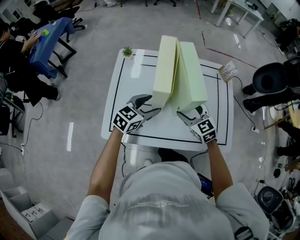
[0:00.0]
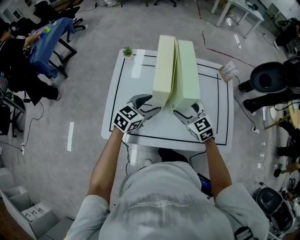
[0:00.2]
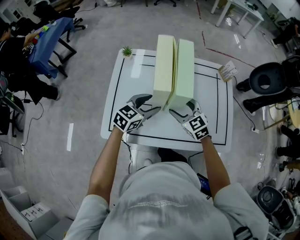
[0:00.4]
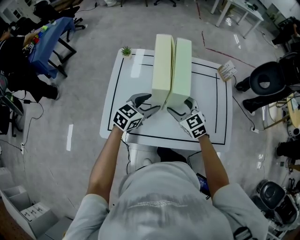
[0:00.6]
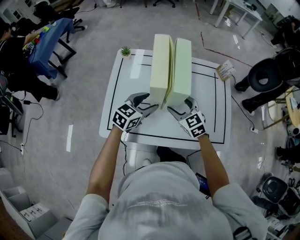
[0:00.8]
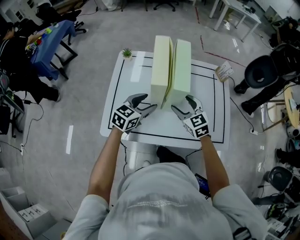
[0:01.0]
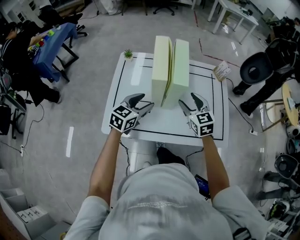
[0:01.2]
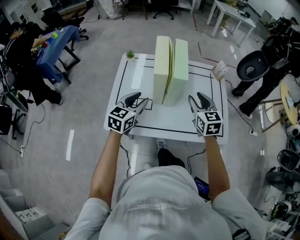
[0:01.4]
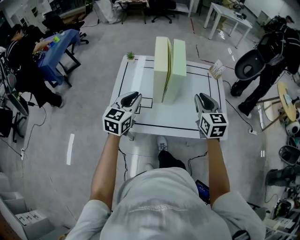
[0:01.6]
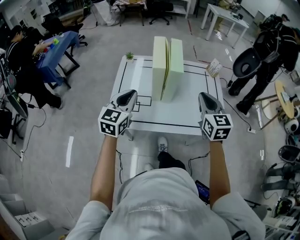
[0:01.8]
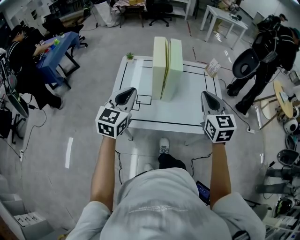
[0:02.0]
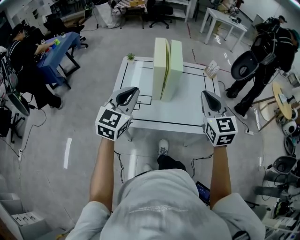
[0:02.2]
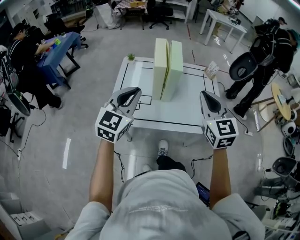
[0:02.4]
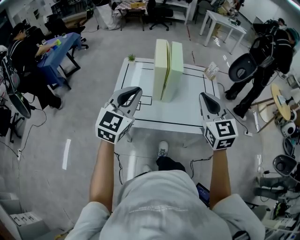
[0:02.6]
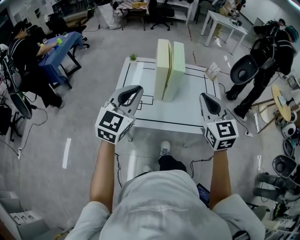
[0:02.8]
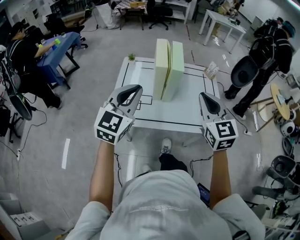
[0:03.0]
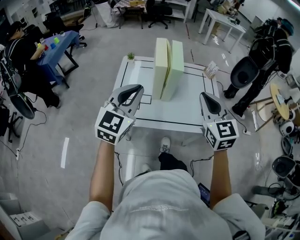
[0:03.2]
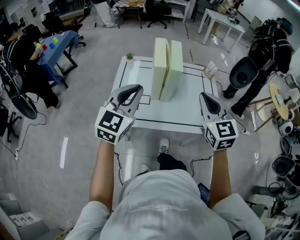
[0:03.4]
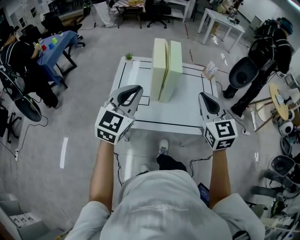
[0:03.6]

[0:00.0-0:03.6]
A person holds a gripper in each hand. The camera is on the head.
0:00.0 to 0:01.8: The left gripper goes some 20 cm upward, backward and to the left, turns by approximately 30 degrees, and closes its fingers. The right gripper shifts some 25 cm upward, backward and to the right, rotates some 30 degrees, and closes up.
0:01.8 to 0:03.6: The grippers both shift upward and backward by about 10 cm.

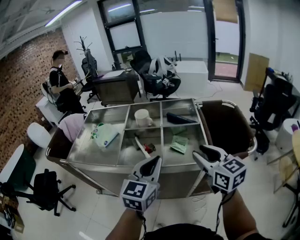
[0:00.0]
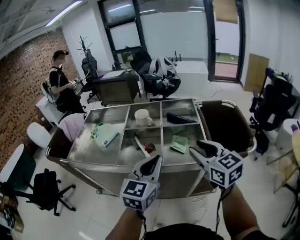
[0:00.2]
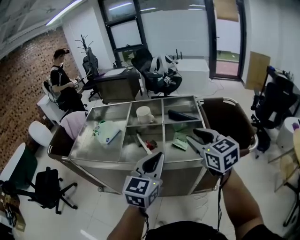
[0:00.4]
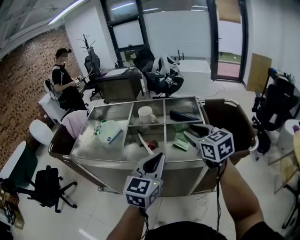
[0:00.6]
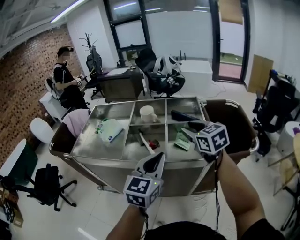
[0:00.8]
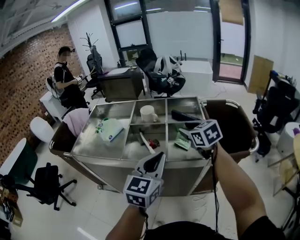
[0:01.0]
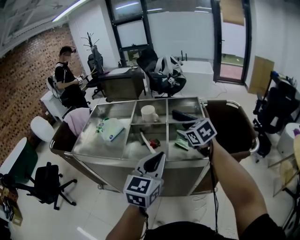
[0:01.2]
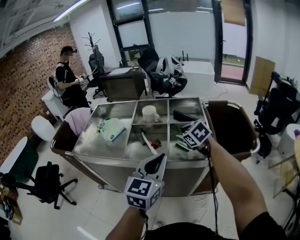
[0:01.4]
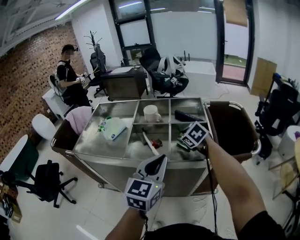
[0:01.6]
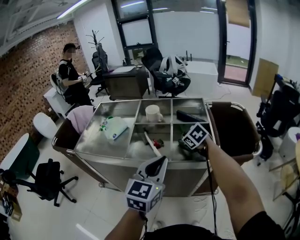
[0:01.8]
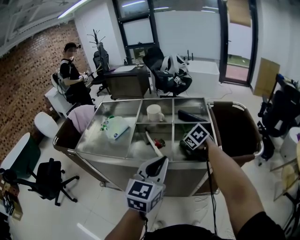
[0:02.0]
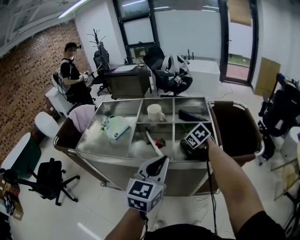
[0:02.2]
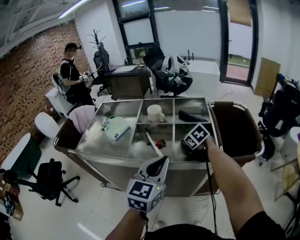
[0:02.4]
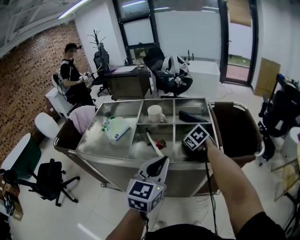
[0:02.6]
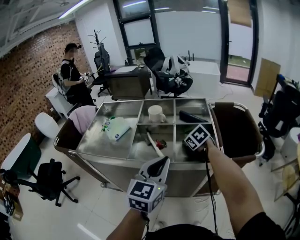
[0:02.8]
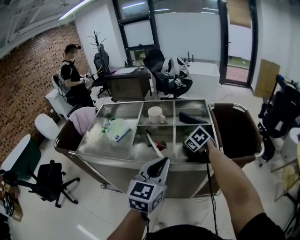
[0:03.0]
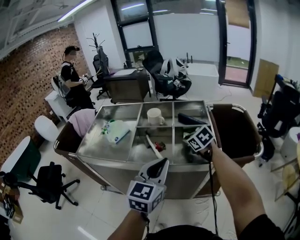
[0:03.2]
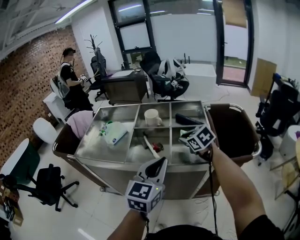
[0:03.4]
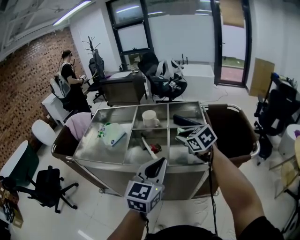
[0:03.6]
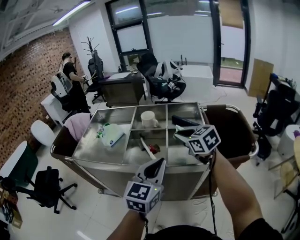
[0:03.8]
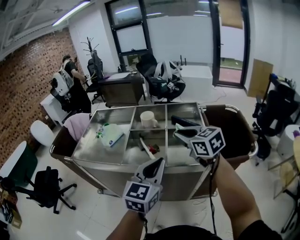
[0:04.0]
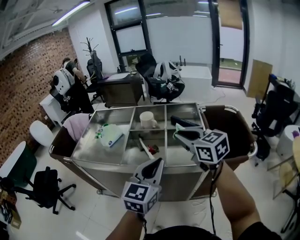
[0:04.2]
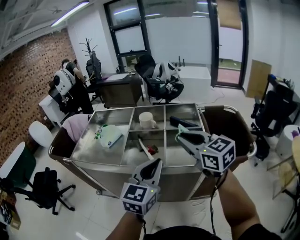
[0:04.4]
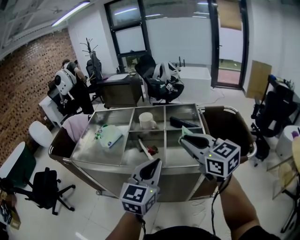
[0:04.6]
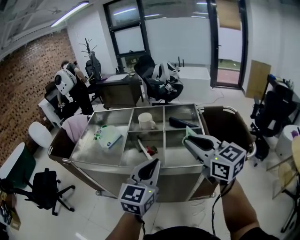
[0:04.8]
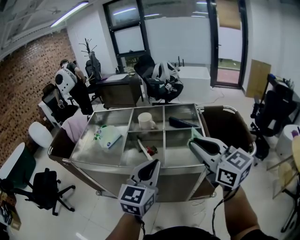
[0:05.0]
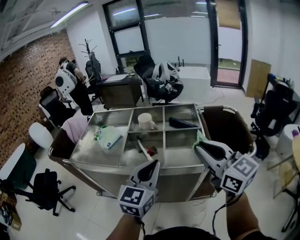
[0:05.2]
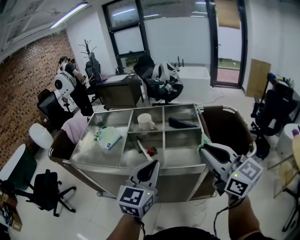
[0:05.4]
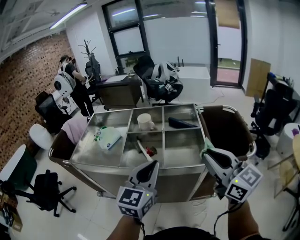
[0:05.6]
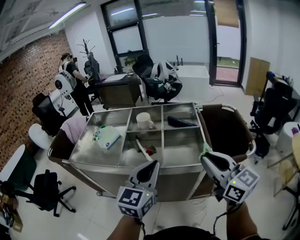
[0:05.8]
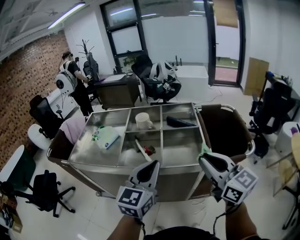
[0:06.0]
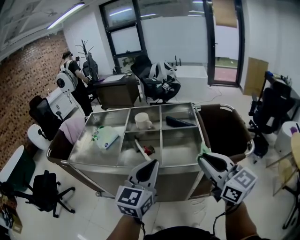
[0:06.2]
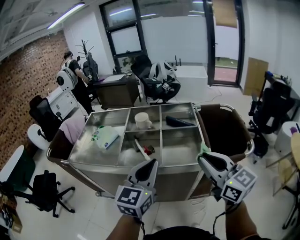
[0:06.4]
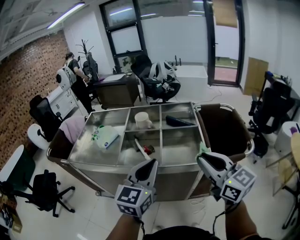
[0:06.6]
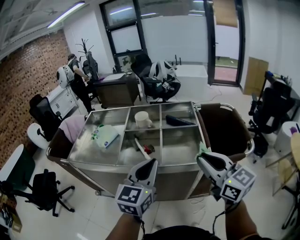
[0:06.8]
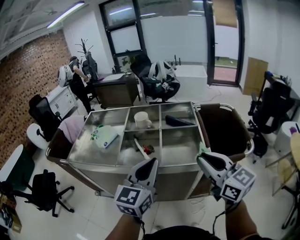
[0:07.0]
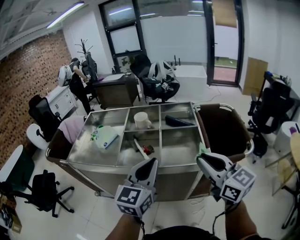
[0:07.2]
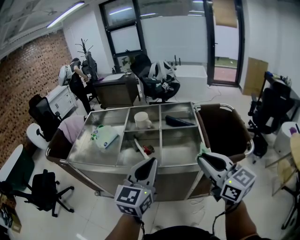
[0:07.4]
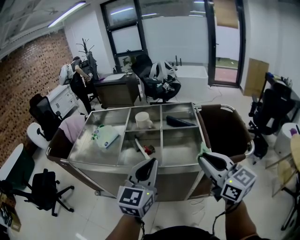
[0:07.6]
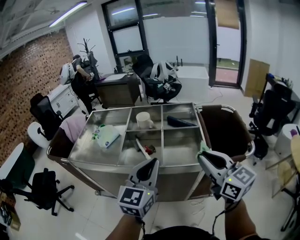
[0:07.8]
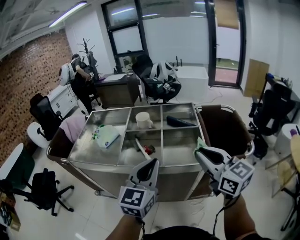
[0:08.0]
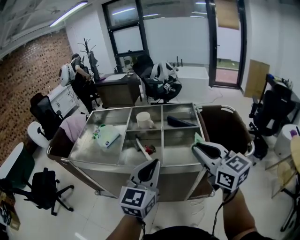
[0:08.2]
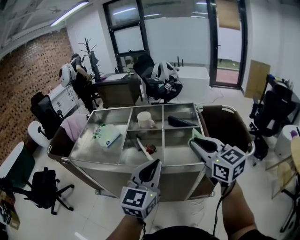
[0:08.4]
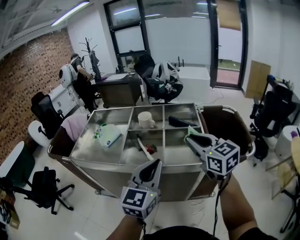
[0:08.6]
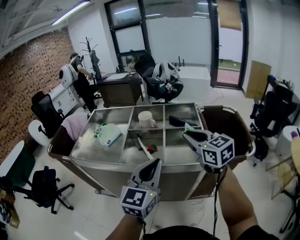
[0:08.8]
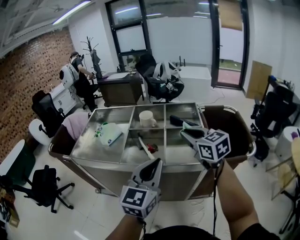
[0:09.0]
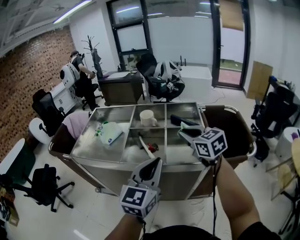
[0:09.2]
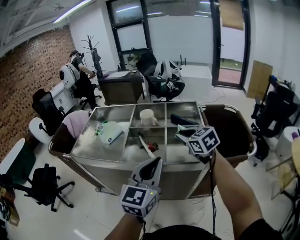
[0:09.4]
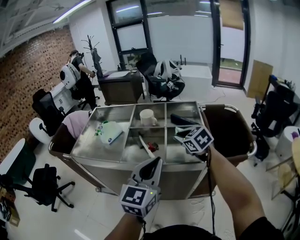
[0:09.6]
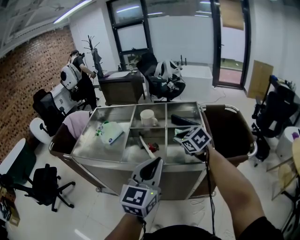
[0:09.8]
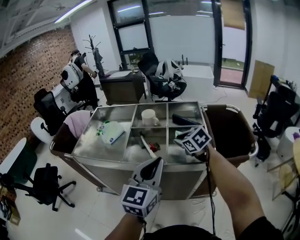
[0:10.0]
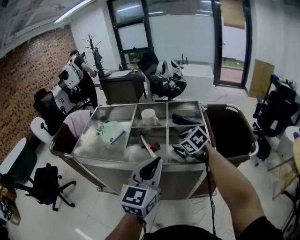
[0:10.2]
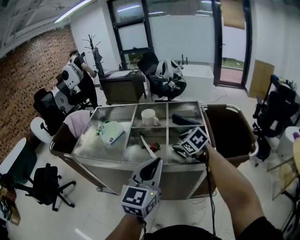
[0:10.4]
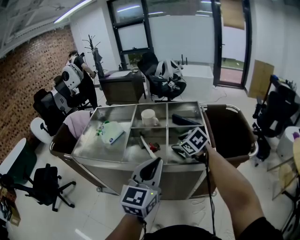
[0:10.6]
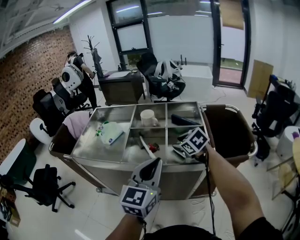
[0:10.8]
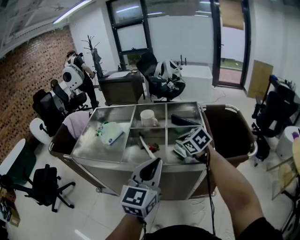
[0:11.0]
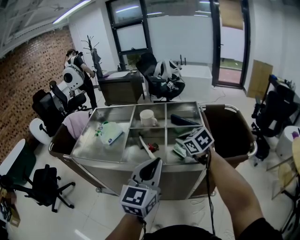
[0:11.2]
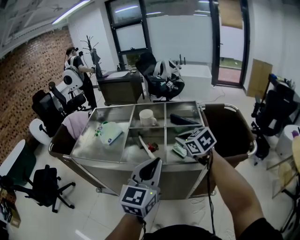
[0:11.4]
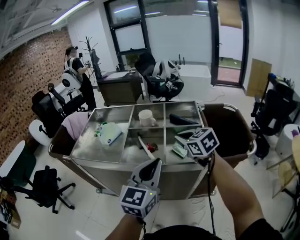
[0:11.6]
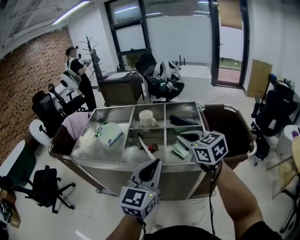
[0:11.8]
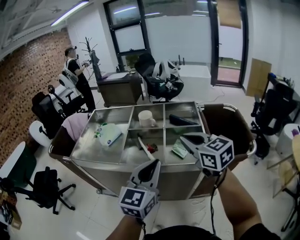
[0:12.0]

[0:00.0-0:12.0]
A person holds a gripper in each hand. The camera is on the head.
0:00.0 to 0:01.6: The right gripper moves forward, downward and to the left, roughly 20 cm, and tips its fingers downward by roughly 40 degrees.
0:01.6 to 0:03.0: The right gripper closes its fingers.
0:03.0 to 0:04.4: The right gripper shifts about 25 cm upward and backward, and tilts its fingers approximately 40 degrees upward.
0:04.4 to 0:06.0: The right gripper moves backward and to the right, about 15 cm.
0:06.0 to 0:07.6: Both grippers stay put.
0:07.6 to 0:09.0: The right gripper goes some 15 cm forward.
0:09.0 to 0:10.4: The right gripper goes approximately 15 cm downward, rotates roughly 30 degrees, and opens.
0:10.4 to 0:12.0: The right gripper moves upward and backward, some 15 cm, tips its fingers upward by about 30 degrees, and closes its fingers.

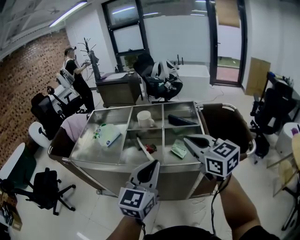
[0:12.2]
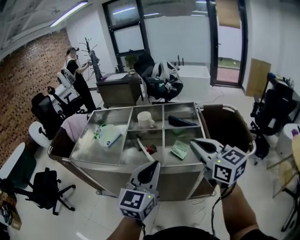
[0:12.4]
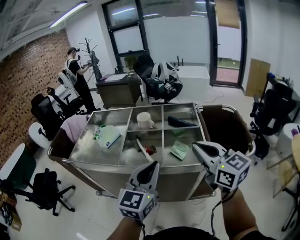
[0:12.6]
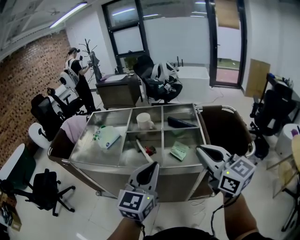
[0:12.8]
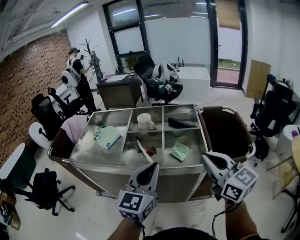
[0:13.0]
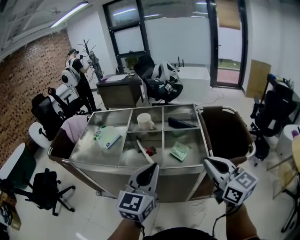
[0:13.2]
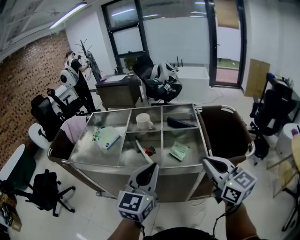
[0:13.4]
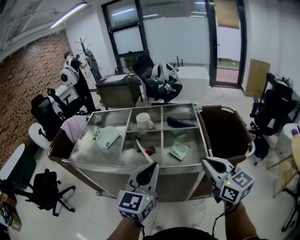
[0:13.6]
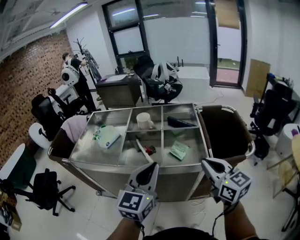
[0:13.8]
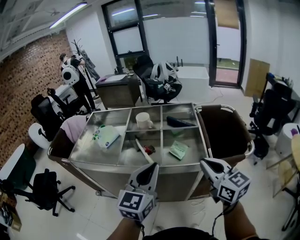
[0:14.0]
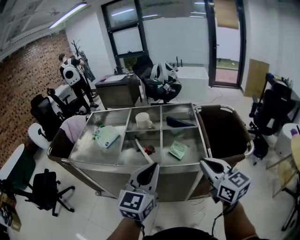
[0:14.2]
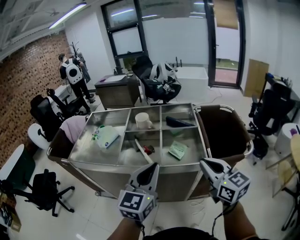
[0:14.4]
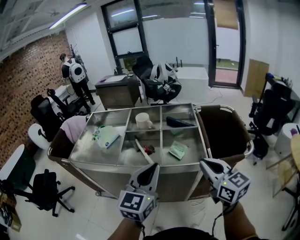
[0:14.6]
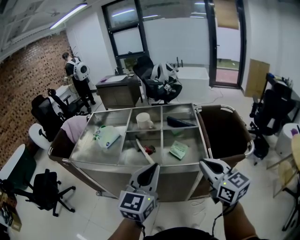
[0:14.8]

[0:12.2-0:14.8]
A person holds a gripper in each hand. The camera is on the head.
0:12.2 to 0:13.4: The right gripper goes some 10 cm backward and to the right.
0:13.4 to 0:14.8: The grippers move only a little.

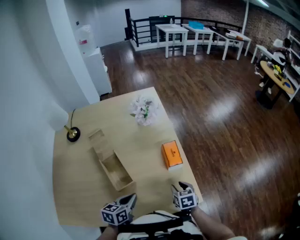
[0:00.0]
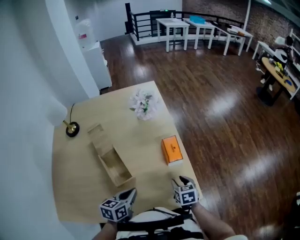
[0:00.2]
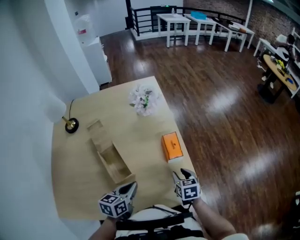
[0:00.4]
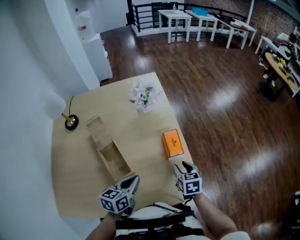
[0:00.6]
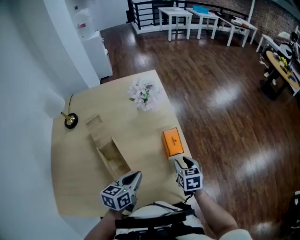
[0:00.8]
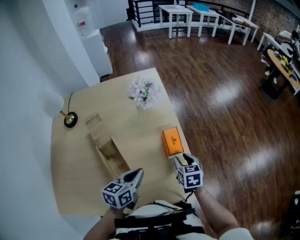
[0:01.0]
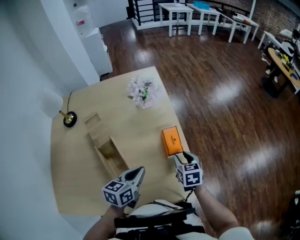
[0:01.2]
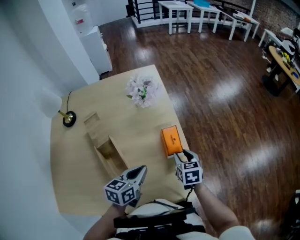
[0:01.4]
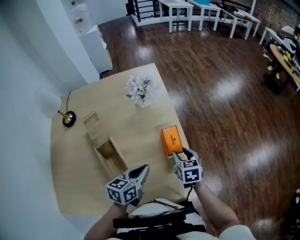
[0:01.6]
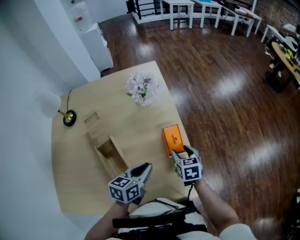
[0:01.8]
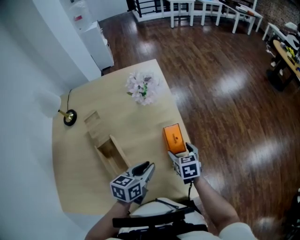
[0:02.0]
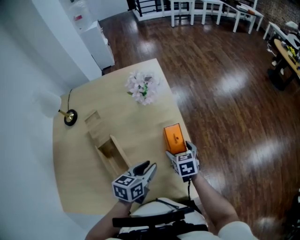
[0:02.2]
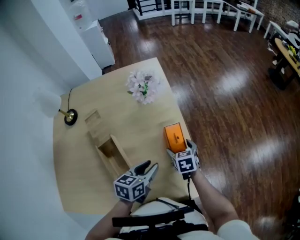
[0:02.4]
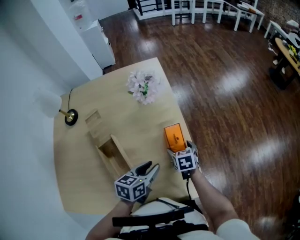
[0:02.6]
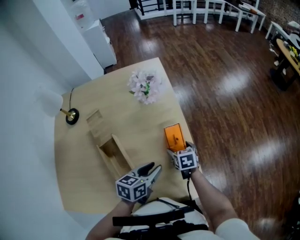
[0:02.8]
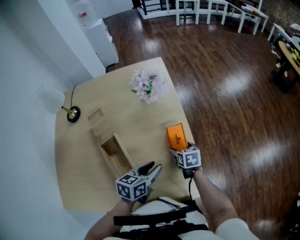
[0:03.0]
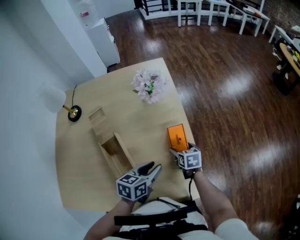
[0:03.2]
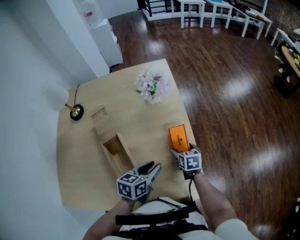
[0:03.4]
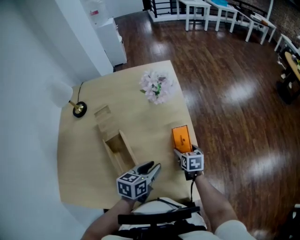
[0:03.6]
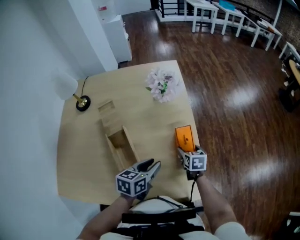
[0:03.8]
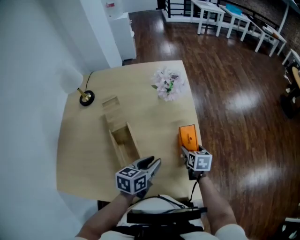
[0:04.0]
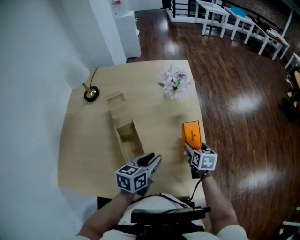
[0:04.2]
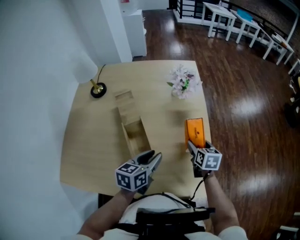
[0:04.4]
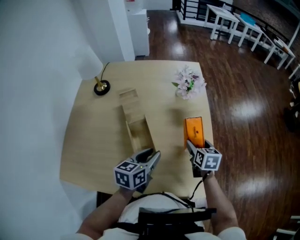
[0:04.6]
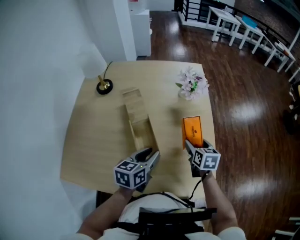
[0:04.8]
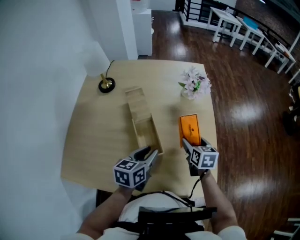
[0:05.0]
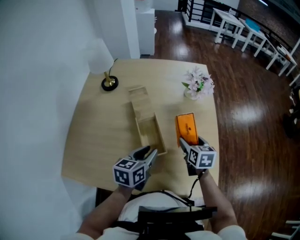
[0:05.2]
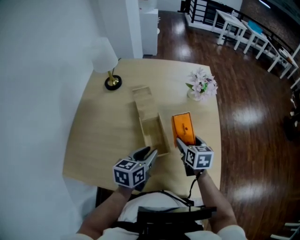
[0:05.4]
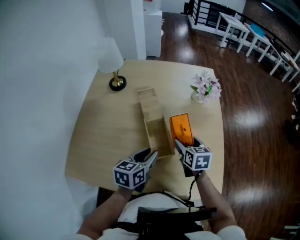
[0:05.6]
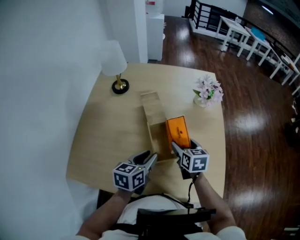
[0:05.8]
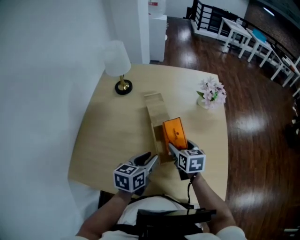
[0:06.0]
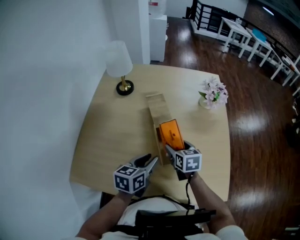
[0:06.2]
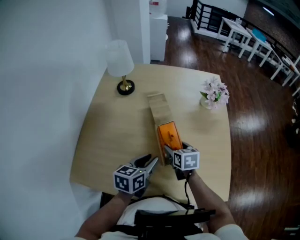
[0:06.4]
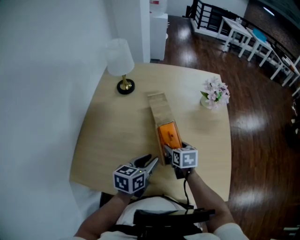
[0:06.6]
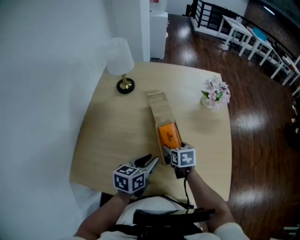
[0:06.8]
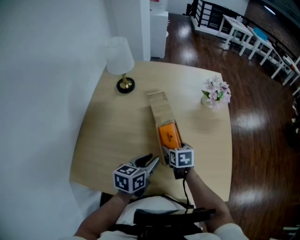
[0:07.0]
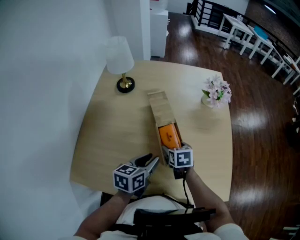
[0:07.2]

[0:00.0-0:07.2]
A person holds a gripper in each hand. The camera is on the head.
0:00.0 to 0:01.4: The left gripper is displaced forward and to the right by approximately 10 cm. Meanwhile the right gripper shifts roughly 15 cm forward and upward.
0:01.4 to 0:02.8: The left gripper opens. Meanwhile the right gripper shifts about 10 cm downward, and opens up.
0:02.8 to 0:04.4: The left gripper heads to the left, covering about 10 cm. The right gripper shifts about 10 cm upward.
0:04.4 to 0:05.8: The left gripper goes roughly 15 cm to the left; the right gripper heads to the left, covering about 20 cm.
0:05.8 to 0:07.2: The right gripper moves to the left and downward, some 10 cm.
